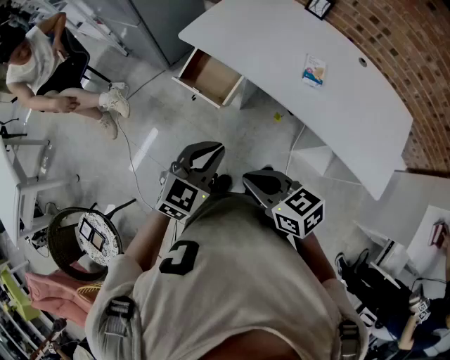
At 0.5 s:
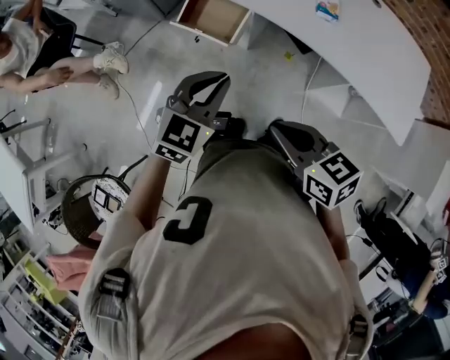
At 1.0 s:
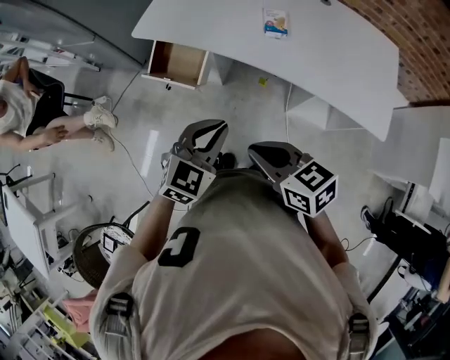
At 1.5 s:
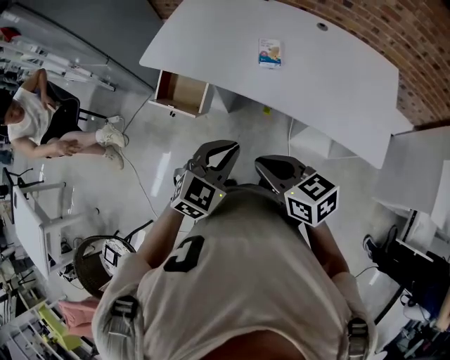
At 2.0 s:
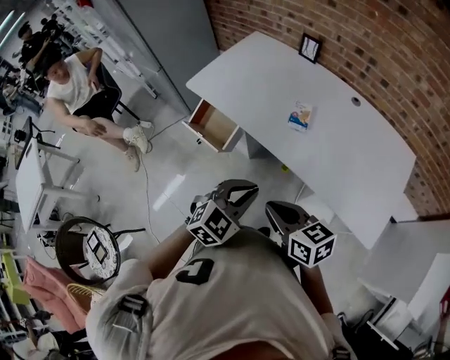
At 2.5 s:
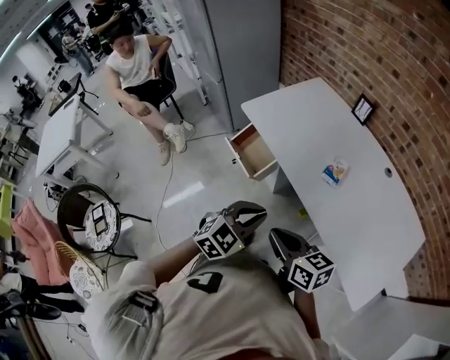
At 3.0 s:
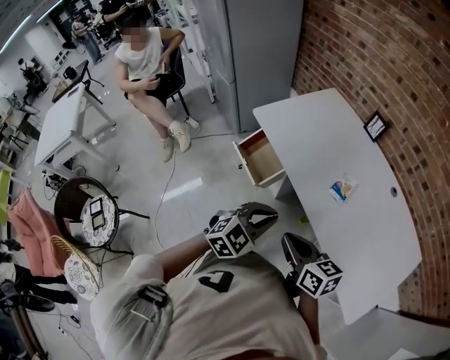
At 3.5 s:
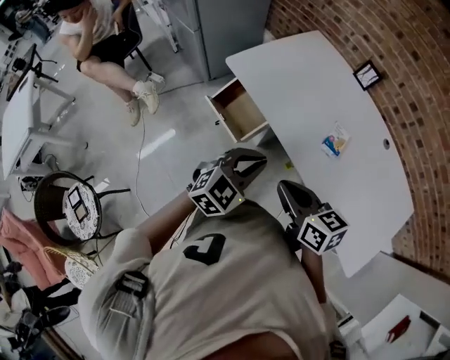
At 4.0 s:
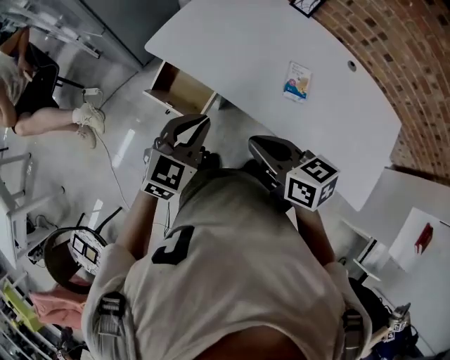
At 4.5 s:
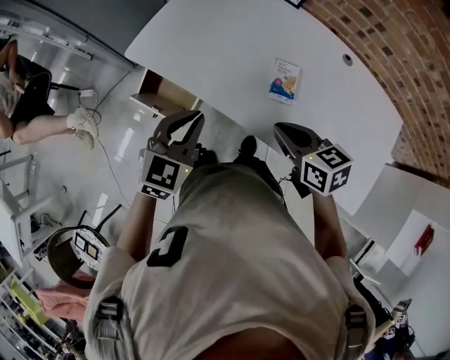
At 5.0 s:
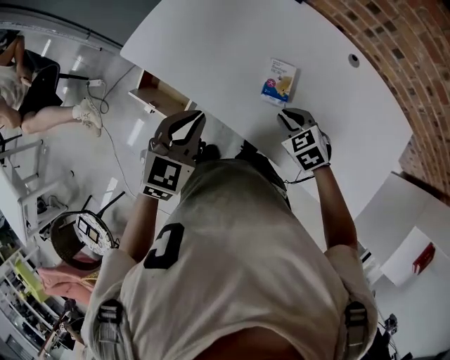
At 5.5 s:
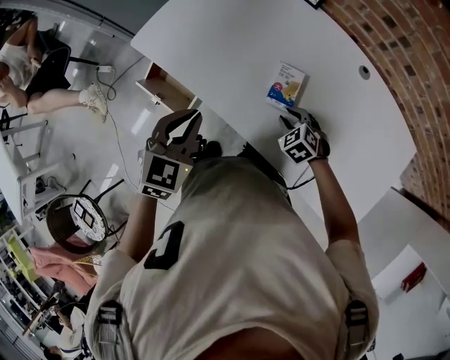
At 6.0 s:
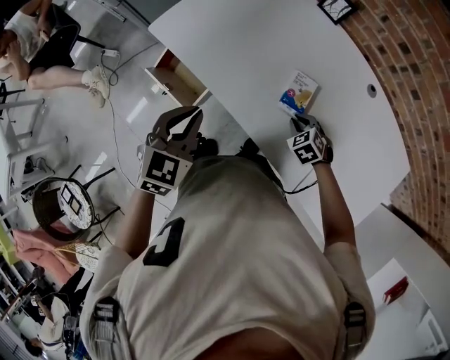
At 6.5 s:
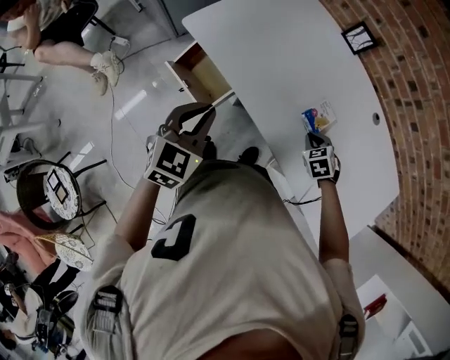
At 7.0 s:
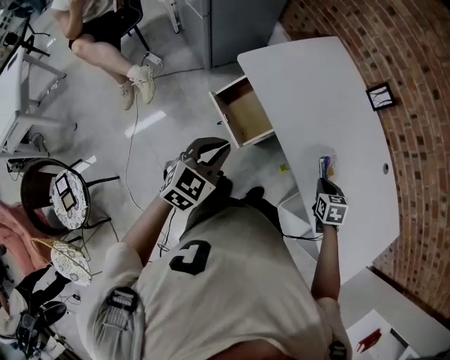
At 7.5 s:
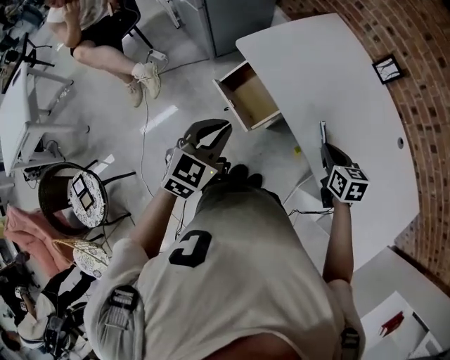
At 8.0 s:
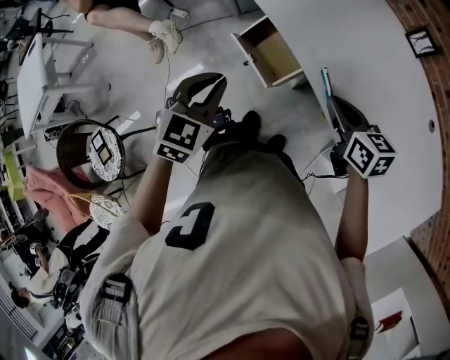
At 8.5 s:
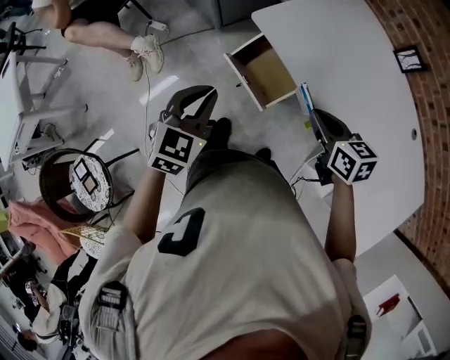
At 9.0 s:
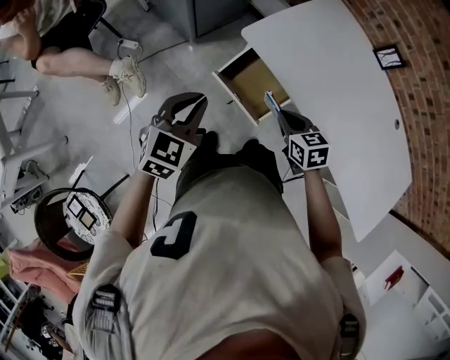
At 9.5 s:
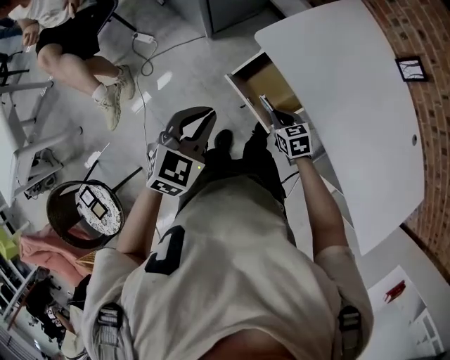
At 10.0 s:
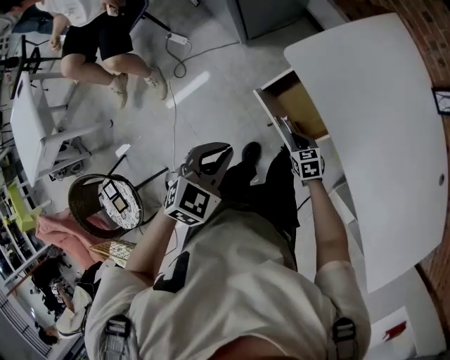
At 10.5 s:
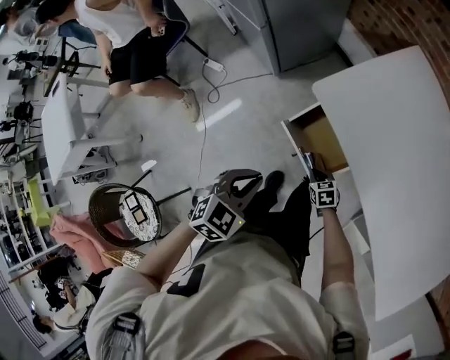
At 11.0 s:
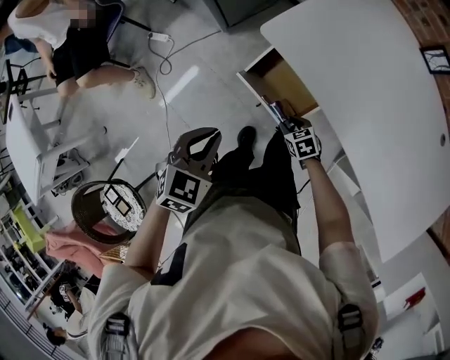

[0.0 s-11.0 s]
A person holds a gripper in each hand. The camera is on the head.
0.0 to 2.0 s: The two grippers go approximately 20 cm to the right.
2.0 to 3.5 s: The two grippers go approximately 20 cm forward and to the left.
3.5 to 5.5 s: The right gripper is displaced to the right, downward and forward by roughly 40 cm, tilts its fingers some 40 degrees downward, and opens its fingers. Meanwhile the left gripper heads forward and to the right, covering roughly 15 cm.
5.5 to 7.5 s: The left gripper shifts approximately 25 cm to the left; the right gripper goes about 25 cm to the left and upward, swivels about 40 degrees, and closes.
7.5 to 9.0 s: The grippers both shift to the left and forward by roughly 25 cm.
9.0 to 11.0 s: The left gripper changes place by some 5 cm. Meanwhile the right gripper heads downward, covering approximately 20 cm, and opens up.

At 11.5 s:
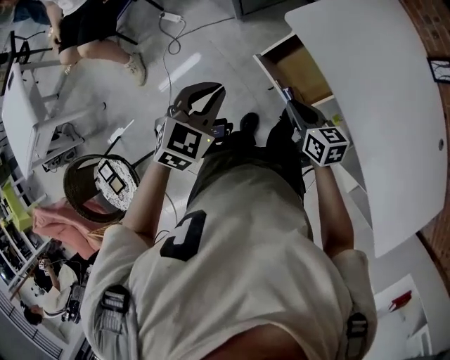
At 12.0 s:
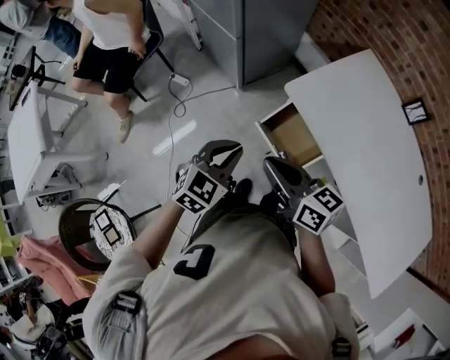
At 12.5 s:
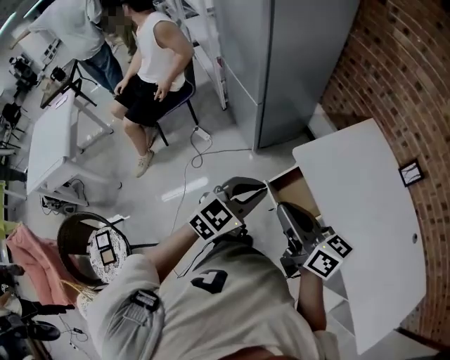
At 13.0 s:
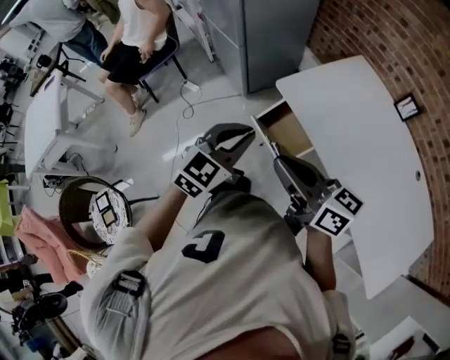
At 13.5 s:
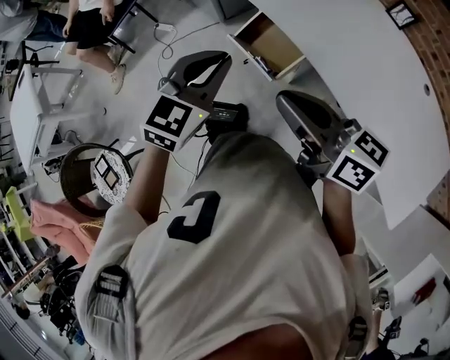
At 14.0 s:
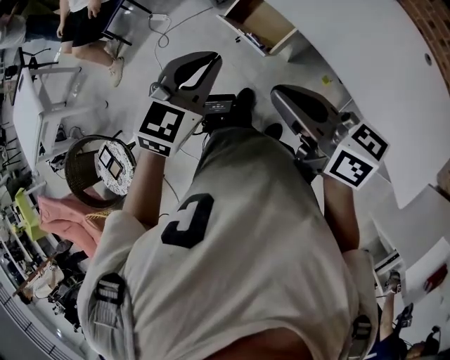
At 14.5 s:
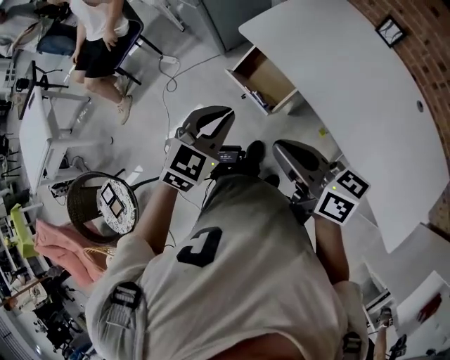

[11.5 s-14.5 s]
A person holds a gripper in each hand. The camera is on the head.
11.5 to 13.0 s: The right gripper moves upward and backward, roughly 35 cm, and tips its fingers upward by roughly 30 degrees. The left gripper shifts some 20 cm upward, backward and to the right.
13.0 to 14.5 s: The right gripper heads backward, to the right and downward, covering approximately 15 cm; the left gripper moves backward, about 10 cm.

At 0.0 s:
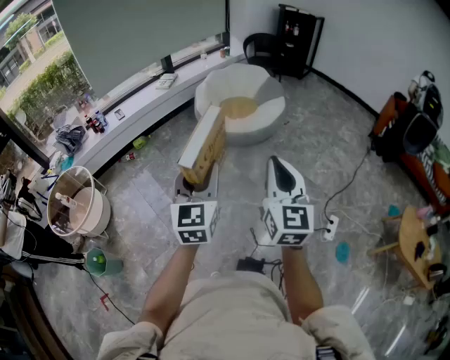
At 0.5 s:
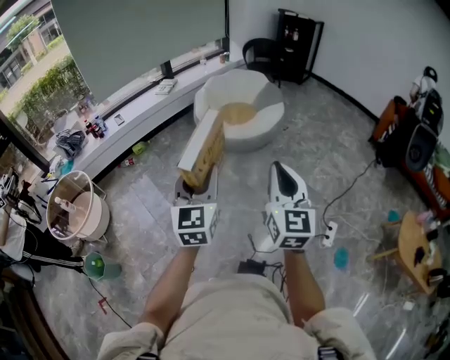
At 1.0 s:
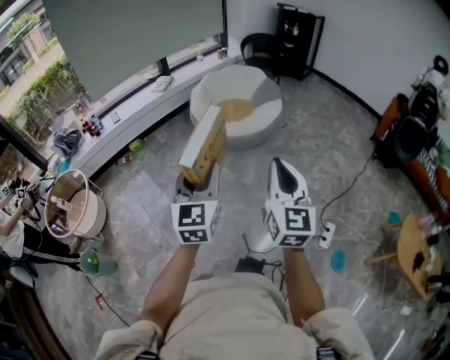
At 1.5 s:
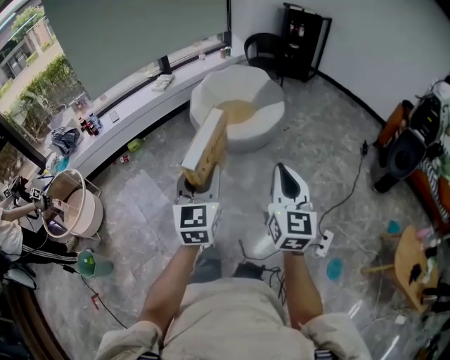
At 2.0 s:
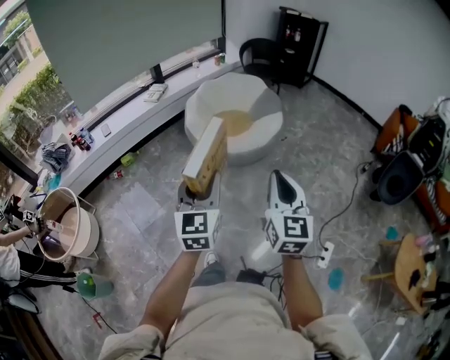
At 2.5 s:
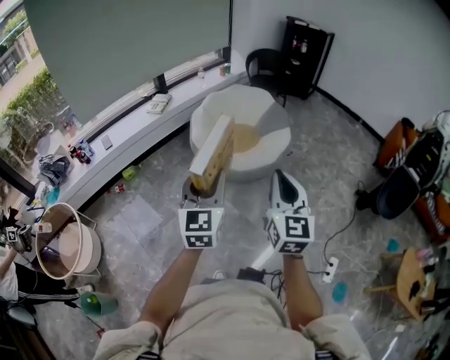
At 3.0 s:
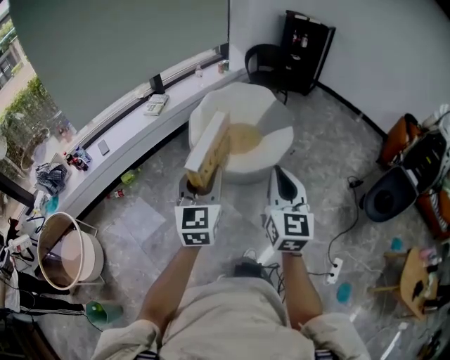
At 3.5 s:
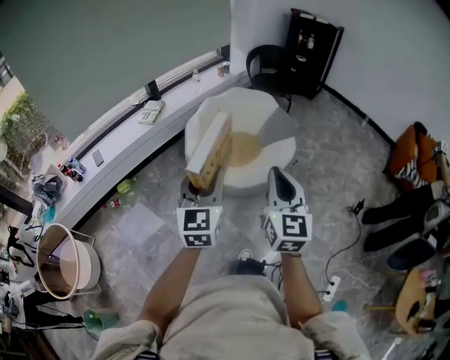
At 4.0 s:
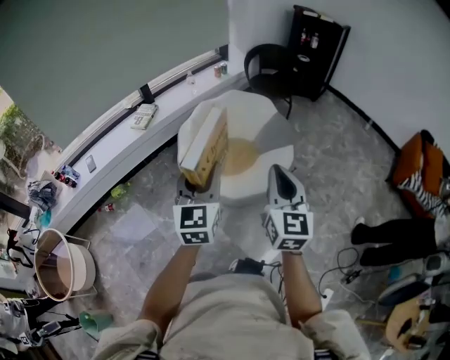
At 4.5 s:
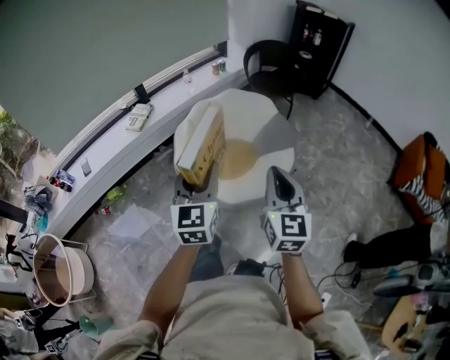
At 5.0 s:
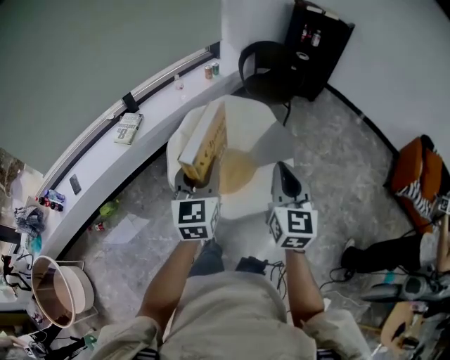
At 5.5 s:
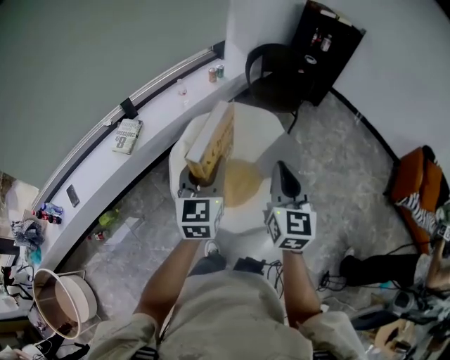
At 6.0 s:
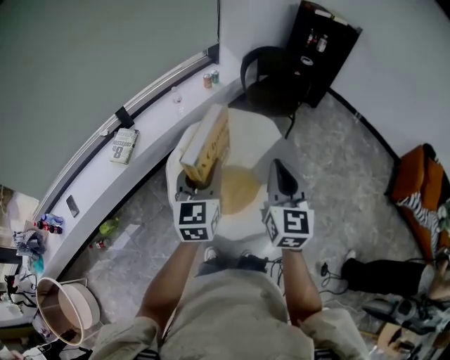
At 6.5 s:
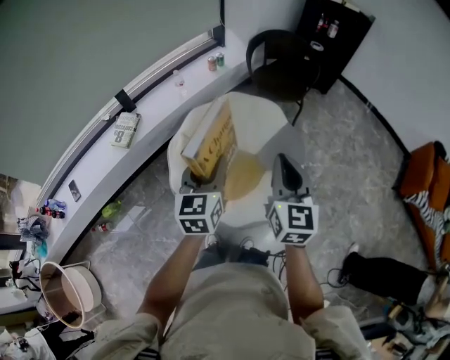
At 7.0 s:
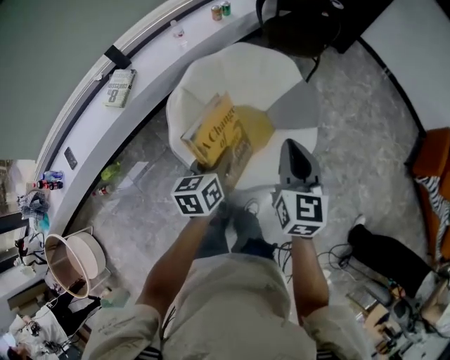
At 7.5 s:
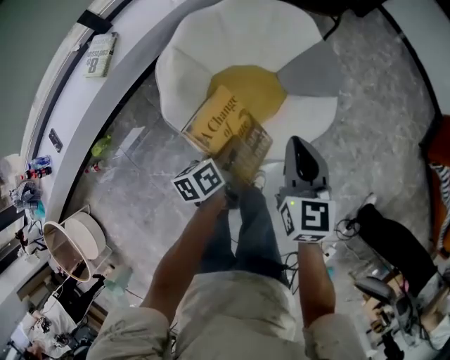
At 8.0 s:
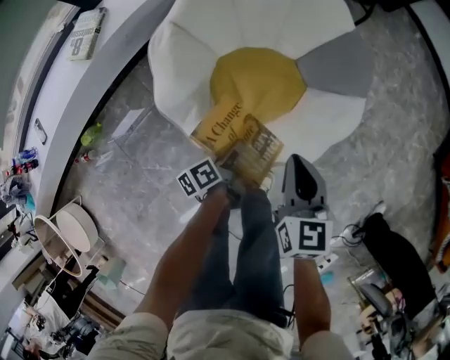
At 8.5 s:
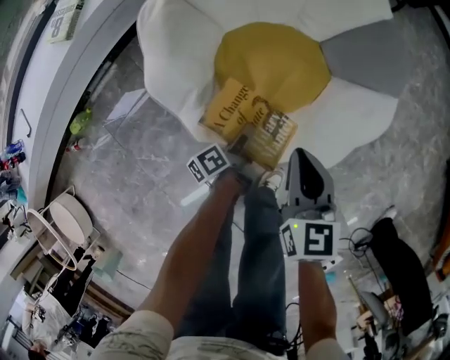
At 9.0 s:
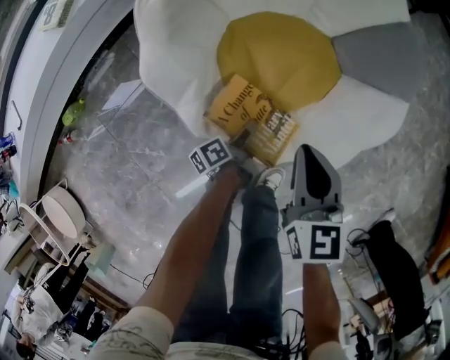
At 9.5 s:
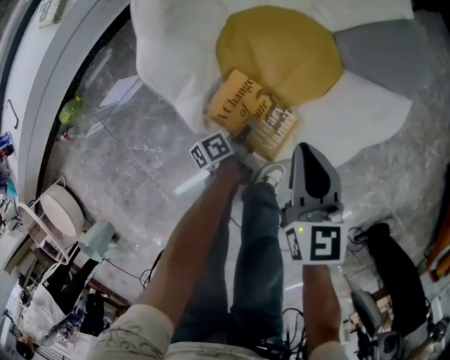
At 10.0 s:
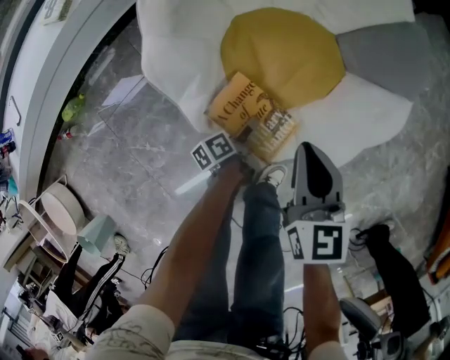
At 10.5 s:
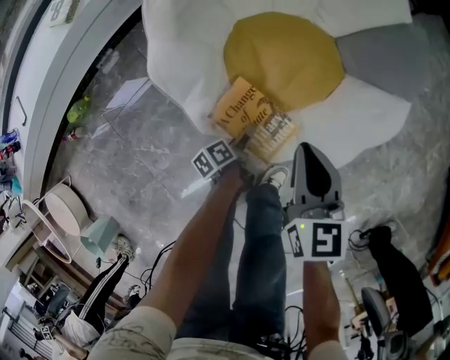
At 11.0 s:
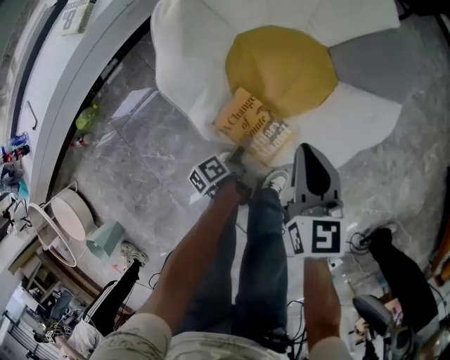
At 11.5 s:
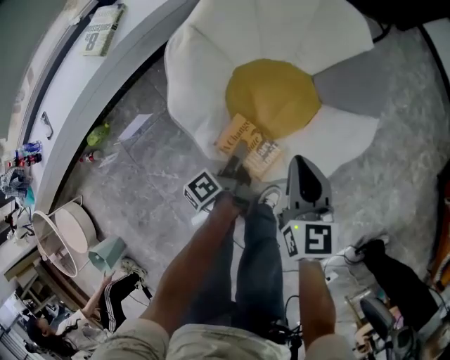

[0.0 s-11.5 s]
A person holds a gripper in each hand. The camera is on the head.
0.0 to 2.0 s: Both grippers travel together forward, roughly 20 cm.
2.0 to 4.0 s: The two grippers travel together, forward, some 50 cm.
4.0 to 6.0 s: Both grippers move forward, approximately 40 cm.
6.0 to 7.5 s: Both grippers travel together downward, about 30 cm. The right gripper rotates about 20 degrees; the left gripper rotates around the line of its fingers by about 50 degrees, counterclockwise from behind.
7.5 to 9.5 s: Both grippers travel together downward, roughly 35 cm. The left gripper changes its angle by approximately 30 degrees.
9.5 to 11.5 s: The right gripper heads upward, covering approximately 15 cm. Meanwhile the left gripper travels upward by some 25 cm.

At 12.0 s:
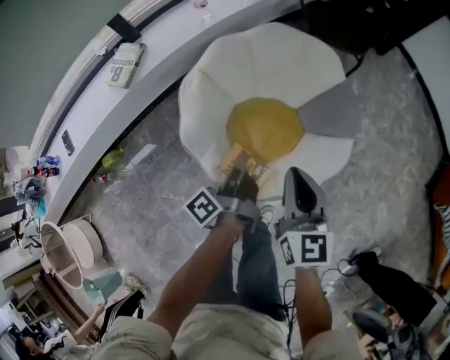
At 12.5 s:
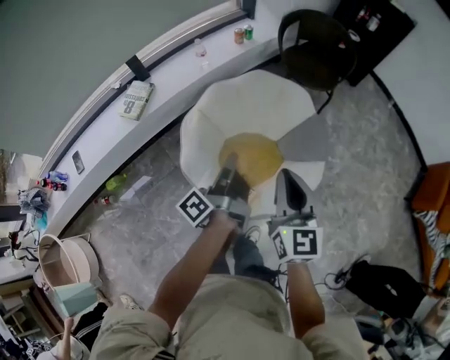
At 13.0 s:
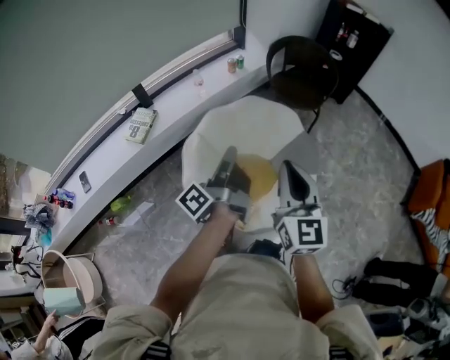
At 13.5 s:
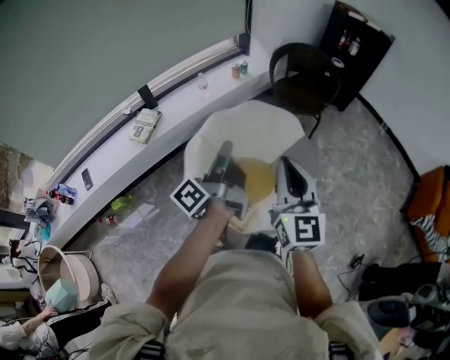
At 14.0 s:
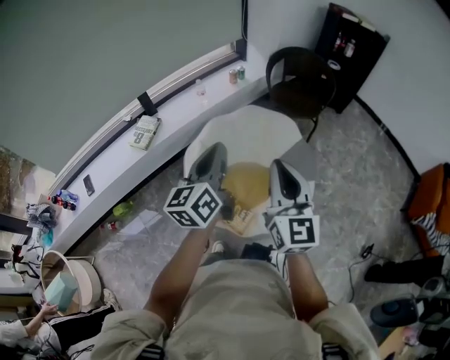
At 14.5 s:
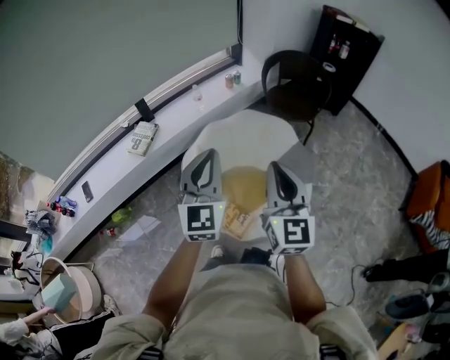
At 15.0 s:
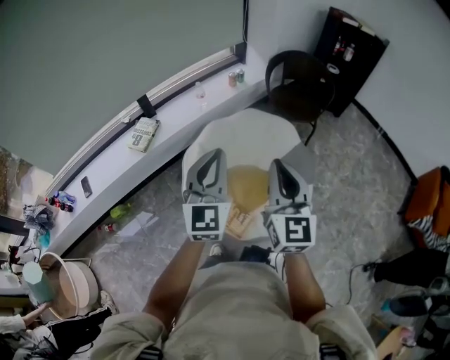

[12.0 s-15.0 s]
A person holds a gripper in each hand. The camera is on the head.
12.0 to 13.5 s: The two grippers go roughly 30 cm upward. The left gripper turns by roughly 20 degrees. The right gripper turns by some 20 degrees.
13.5 to 15.0 s: The left gripper goes some 5 cm upward, and rolls clockwise, seen from behind, by about 90 degrees.
